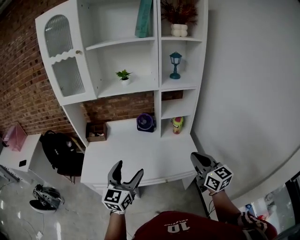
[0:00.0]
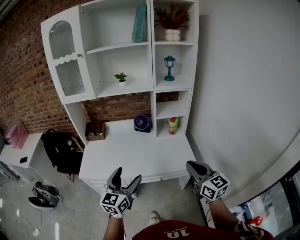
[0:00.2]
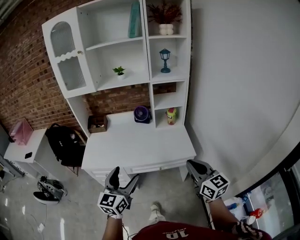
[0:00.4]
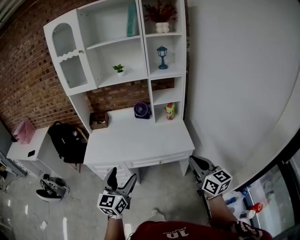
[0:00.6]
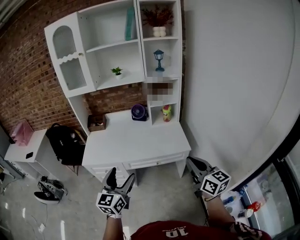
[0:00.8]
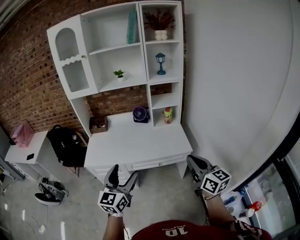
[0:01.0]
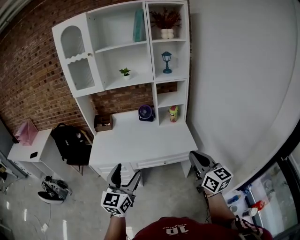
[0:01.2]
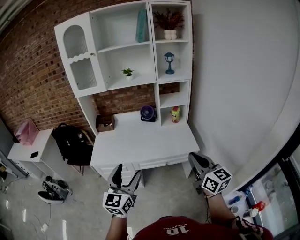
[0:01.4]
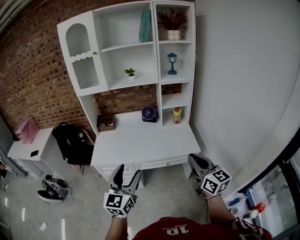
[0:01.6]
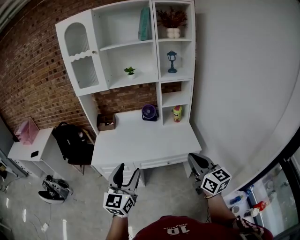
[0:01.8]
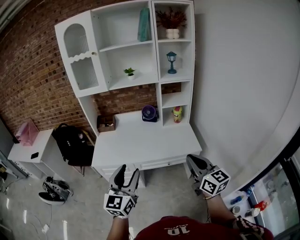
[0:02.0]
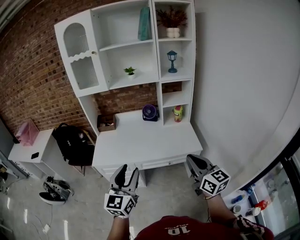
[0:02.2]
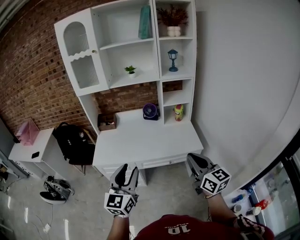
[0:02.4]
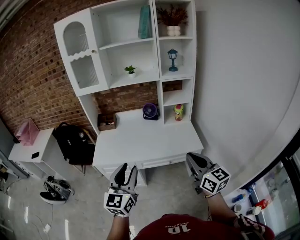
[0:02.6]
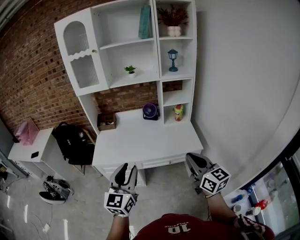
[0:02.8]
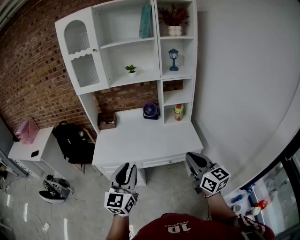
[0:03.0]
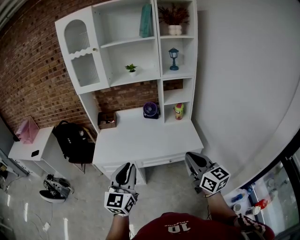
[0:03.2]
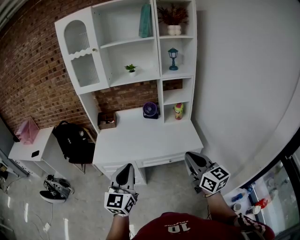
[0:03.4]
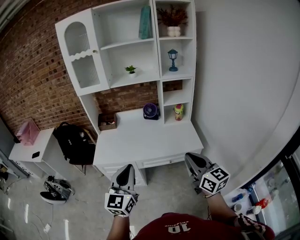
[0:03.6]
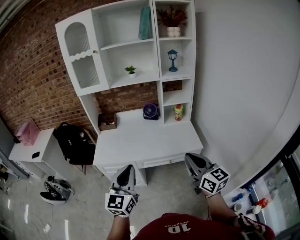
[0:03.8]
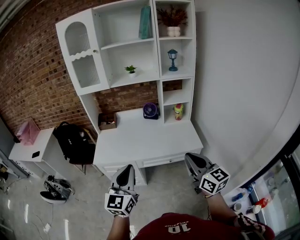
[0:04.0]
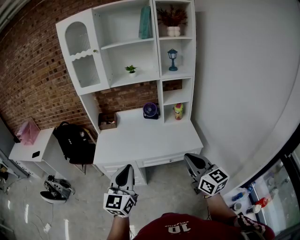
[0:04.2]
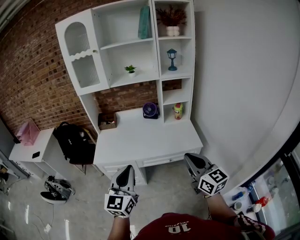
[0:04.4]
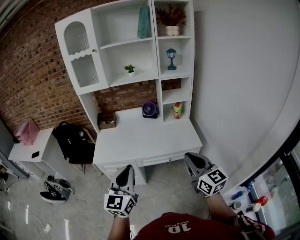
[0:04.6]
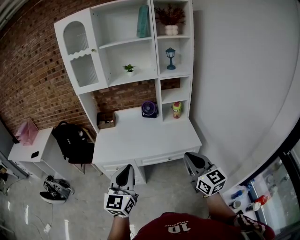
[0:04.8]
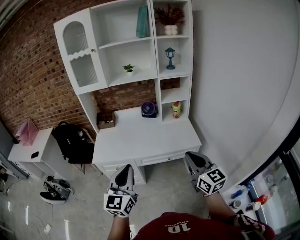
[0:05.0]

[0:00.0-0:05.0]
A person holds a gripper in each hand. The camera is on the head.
0:00.0 to 0:01.6: The two grippers go about 20 cm backward.
0:01.6 to 0:03.4: The left gripper closes up.
0:03.4 to 0:05.0: The grippers make only small movements.

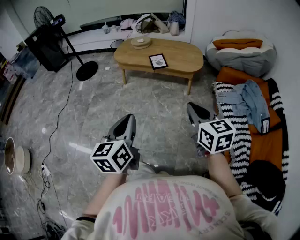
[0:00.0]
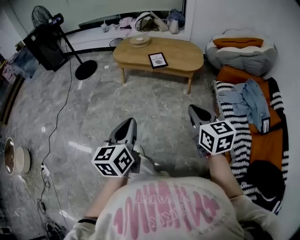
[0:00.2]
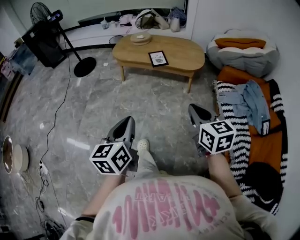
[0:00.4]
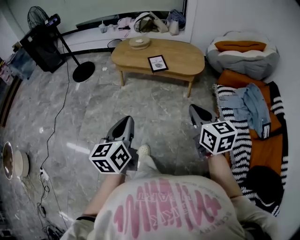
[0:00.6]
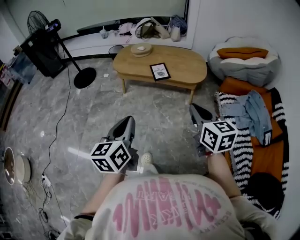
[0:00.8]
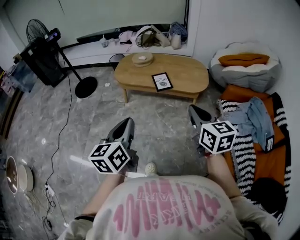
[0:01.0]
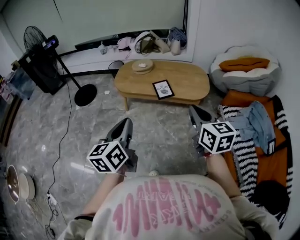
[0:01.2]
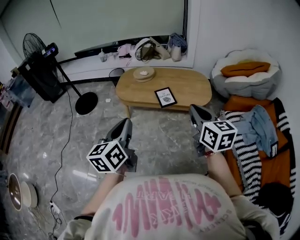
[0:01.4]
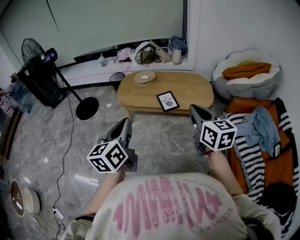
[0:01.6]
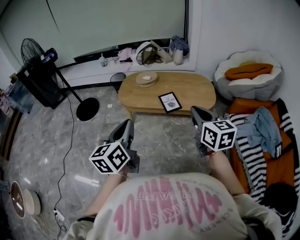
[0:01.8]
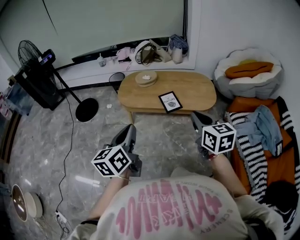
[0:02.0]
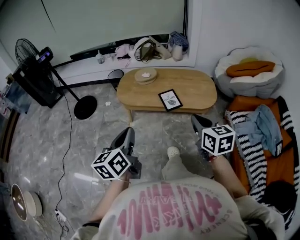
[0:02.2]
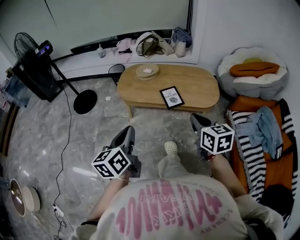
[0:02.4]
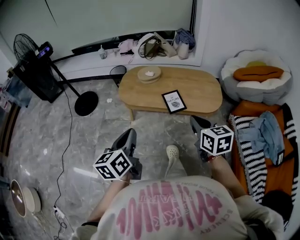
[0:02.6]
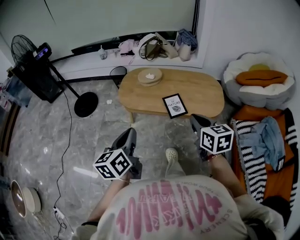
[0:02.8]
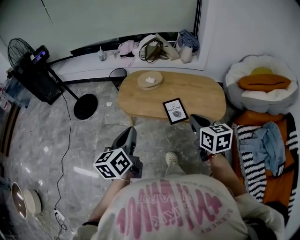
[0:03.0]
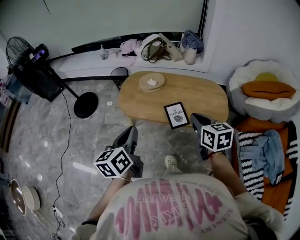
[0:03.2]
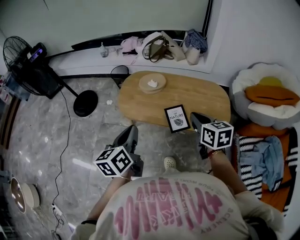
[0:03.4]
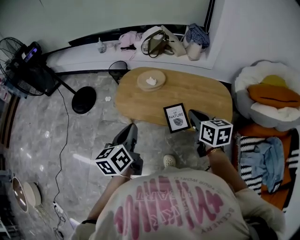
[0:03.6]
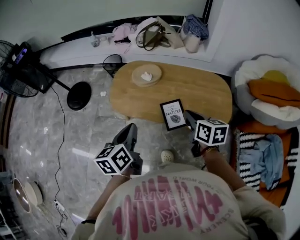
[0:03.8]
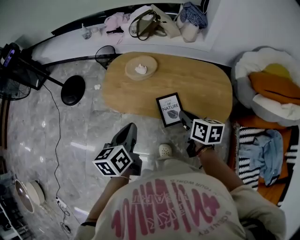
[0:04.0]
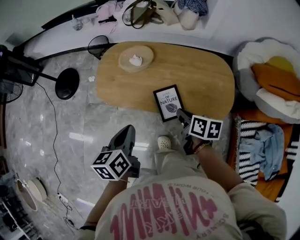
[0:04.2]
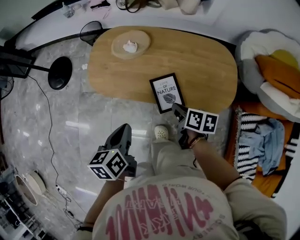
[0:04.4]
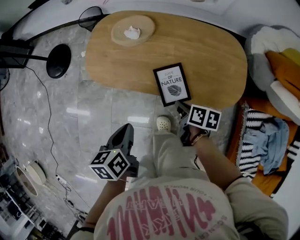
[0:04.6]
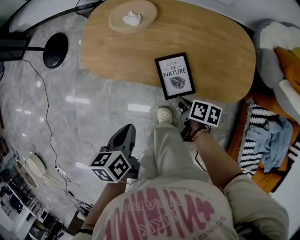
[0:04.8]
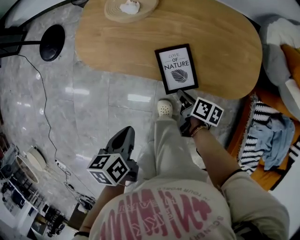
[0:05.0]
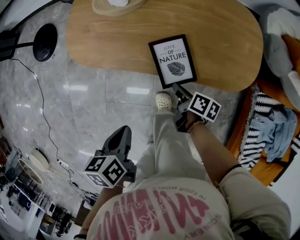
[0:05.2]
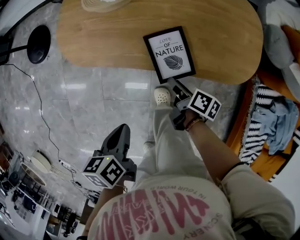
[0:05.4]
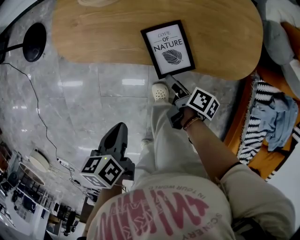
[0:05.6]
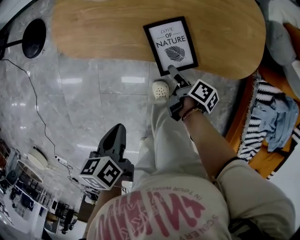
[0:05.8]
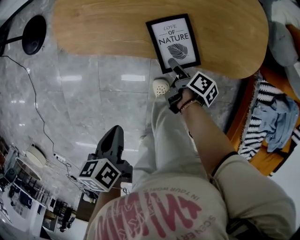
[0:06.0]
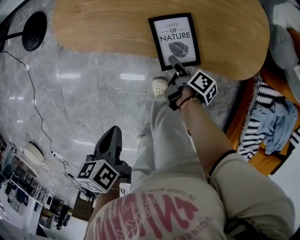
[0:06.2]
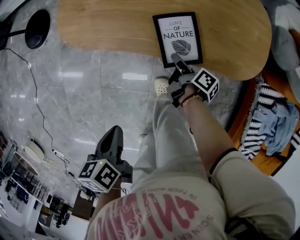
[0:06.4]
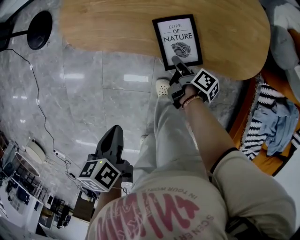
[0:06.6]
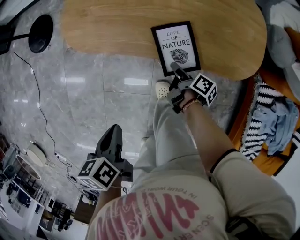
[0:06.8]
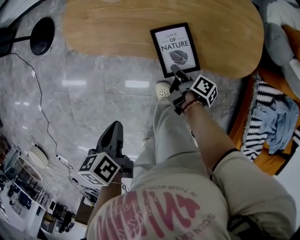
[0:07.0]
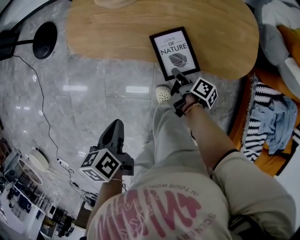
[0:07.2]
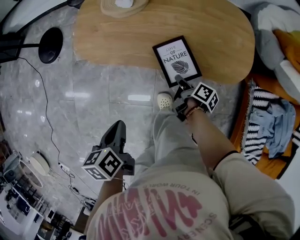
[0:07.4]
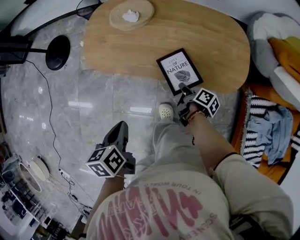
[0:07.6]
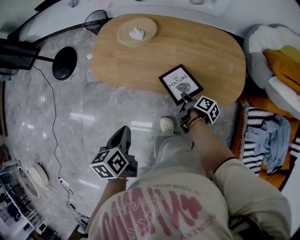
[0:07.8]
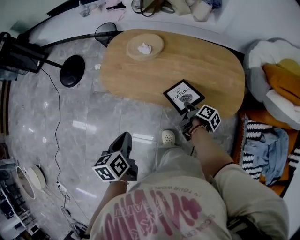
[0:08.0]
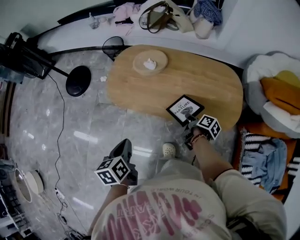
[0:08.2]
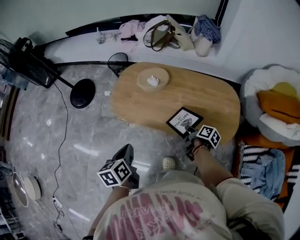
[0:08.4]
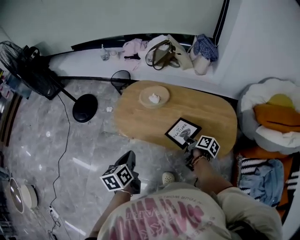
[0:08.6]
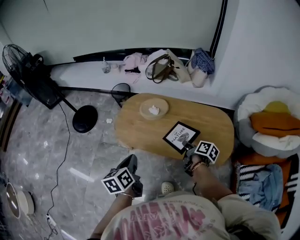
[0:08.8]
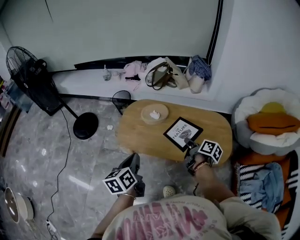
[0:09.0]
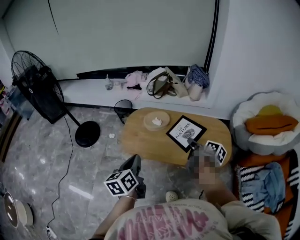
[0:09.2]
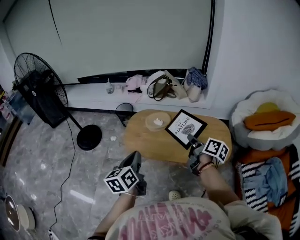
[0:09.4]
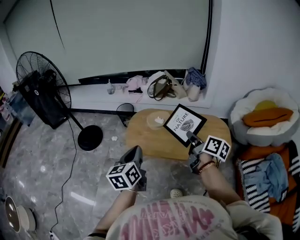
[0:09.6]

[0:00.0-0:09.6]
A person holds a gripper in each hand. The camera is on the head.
0:00.0 to 0:01.6: Both grippers move forward, approximately 30 cm.
0:01.6 to 0:03.2: The right gripper is displaced forward and downward by some 25 cm. The left gripper is displaced forward by about 20 cm.
0:03.2 to 0:04.8: The two grippers go approximately 30 cm downward. The left gripper points its fingers about 30 degrees further downward. Meanwhile the right gripper rotates around the line of its fingers by some 50 degrees, clockwise from behind.
0:04.8 to 0:06.4: The right gripper travels downward by approximately 10 cm, turns by approximately 40 degrees, and opens its fingers. Meanwhile the left gripper travels backward by roughly 10 cm.
0:06.4 to 0:08.0: The right gripper is displaced upward by about 15 cm, and closes its fingers. The left gripper is displaced upward and forward by roughly 10 cm.
0:08.0 to 0:09.6: The right gripper goes approximately 40 cm upward, and points its fingers about 30 degrees further upward. The left gripper moves upward, some 20 cm, and angles its fingers upward, by approximately 30 degrees.

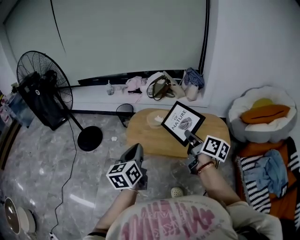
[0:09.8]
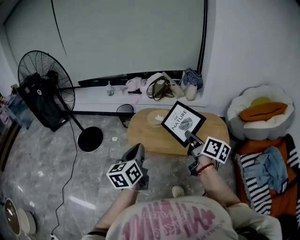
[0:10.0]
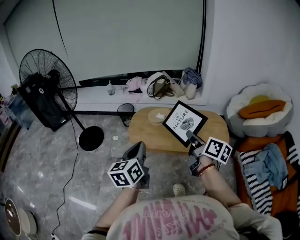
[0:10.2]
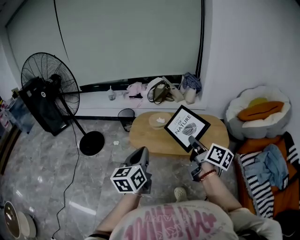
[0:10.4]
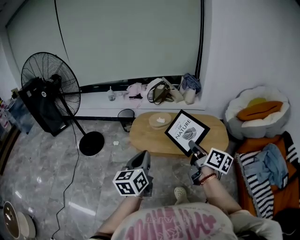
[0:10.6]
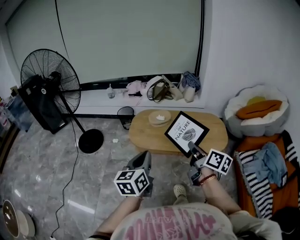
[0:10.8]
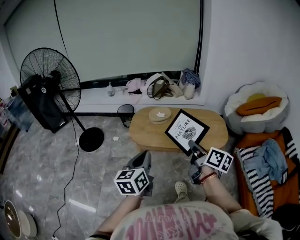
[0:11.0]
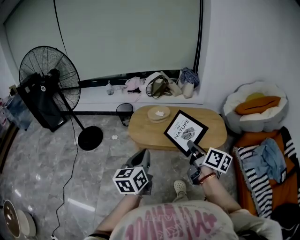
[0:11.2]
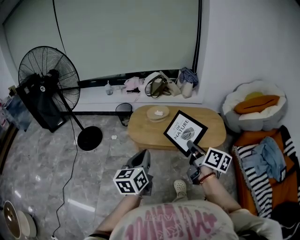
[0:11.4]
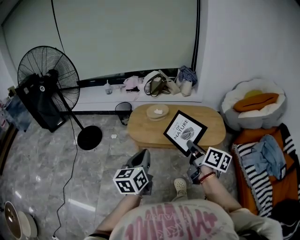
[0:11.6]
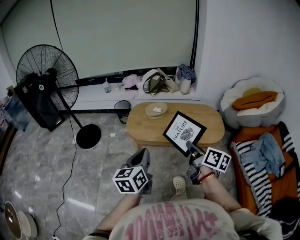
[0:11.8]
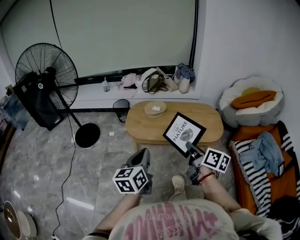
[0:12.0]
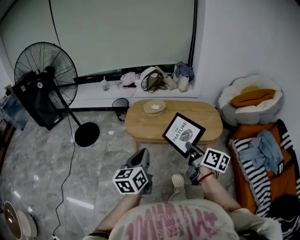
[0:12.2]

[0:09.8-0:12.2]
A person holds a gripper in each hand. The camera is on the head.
0:09.8 to 0:11.0: The two grippers go about 15 cm backward.
0:11.0 to 0:12.2: The right gripper heads backward, covering roughly 5 cm.

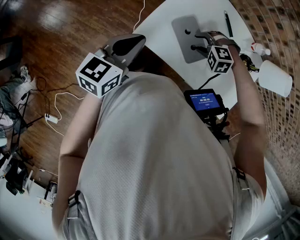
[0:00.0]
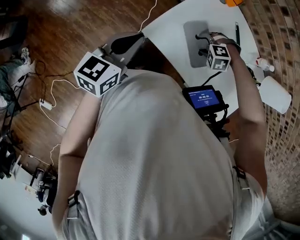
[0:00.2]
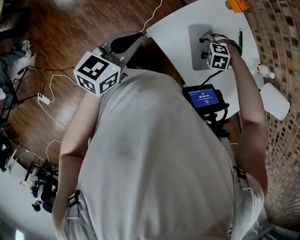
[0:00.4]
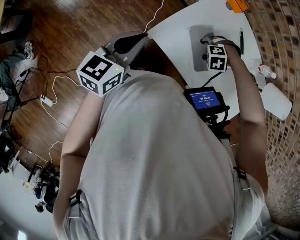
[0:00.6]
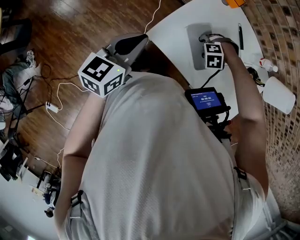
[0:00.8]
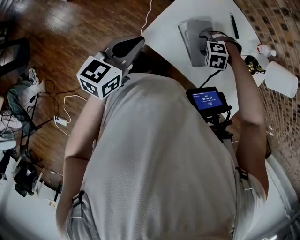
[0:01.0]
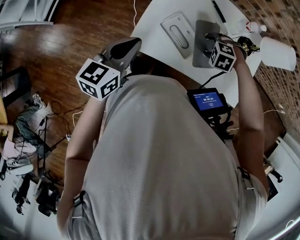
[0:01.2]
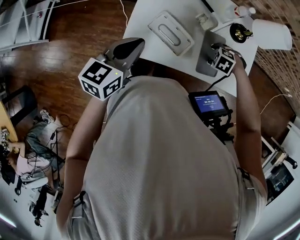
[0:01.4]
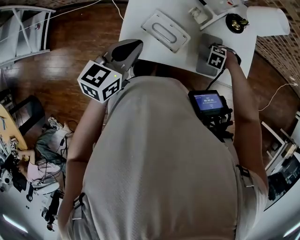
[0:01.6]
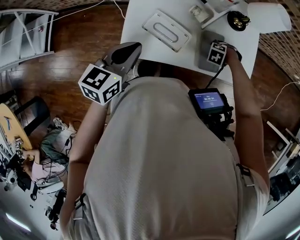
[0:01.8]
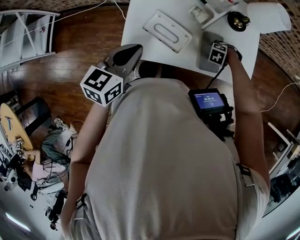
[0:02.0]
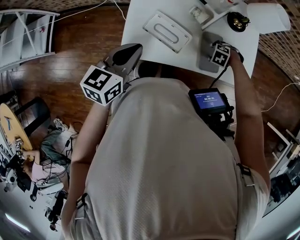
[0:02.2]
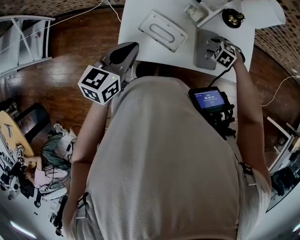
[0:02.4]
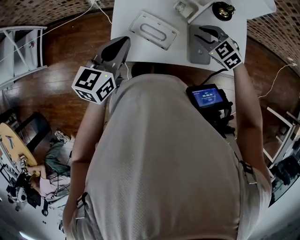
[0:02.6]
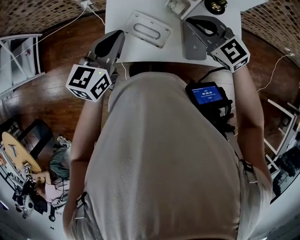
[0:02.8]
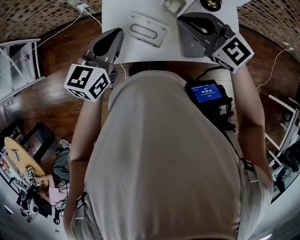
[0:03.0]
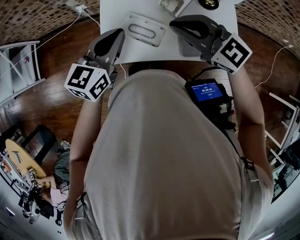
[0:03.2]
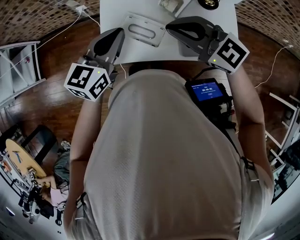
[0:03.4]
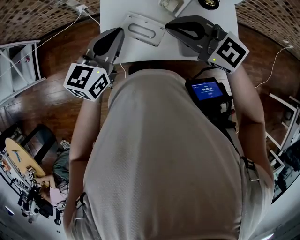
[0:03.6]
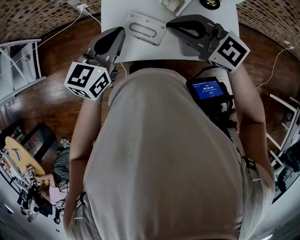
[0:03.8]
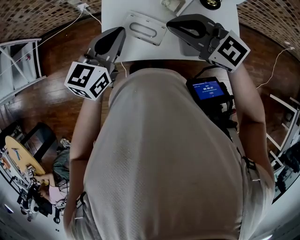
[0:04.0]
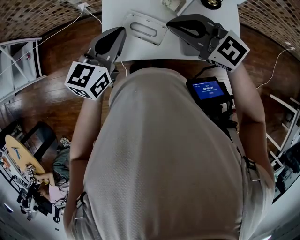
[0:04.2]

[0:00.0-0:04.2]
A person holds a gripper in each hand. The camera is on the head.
0:00.0 to 0:01.4: The right gripper ends up some 10 cm from where it was, and changes its angle by about 40 degrees.
0:01.4 to 0:02.8: The right gripper goes some 20 cm upward, points its fingers roughly 60 degrees further upward, and closes.
0:02.8 to 0:04.2: The left gripper shifts by some 5 cm; the right gripper is displaced upward and backward by some 10 cm.

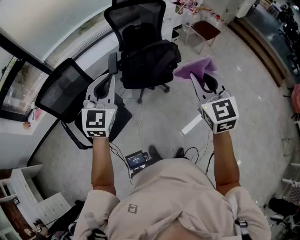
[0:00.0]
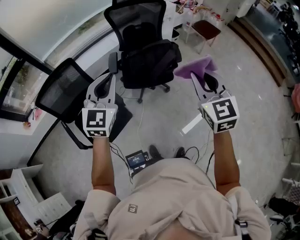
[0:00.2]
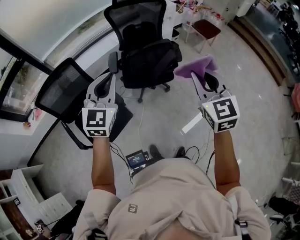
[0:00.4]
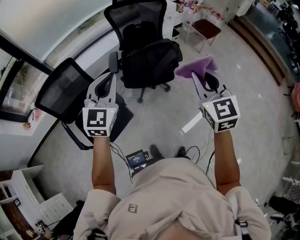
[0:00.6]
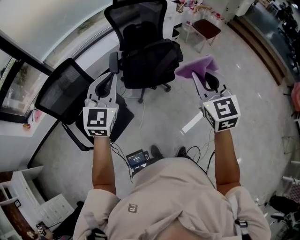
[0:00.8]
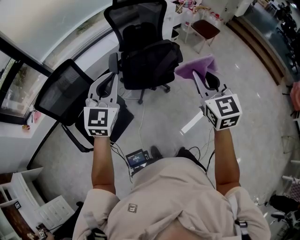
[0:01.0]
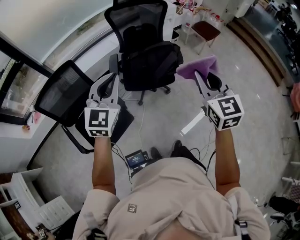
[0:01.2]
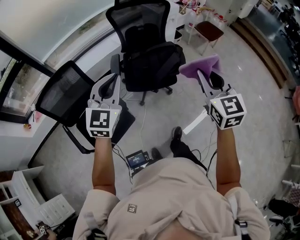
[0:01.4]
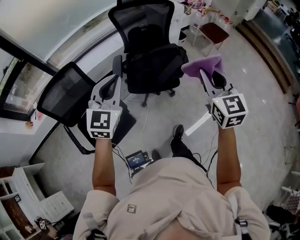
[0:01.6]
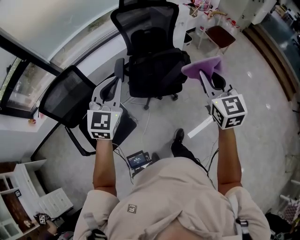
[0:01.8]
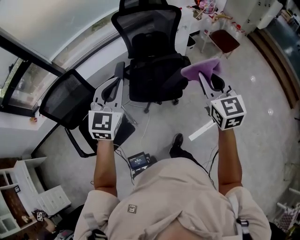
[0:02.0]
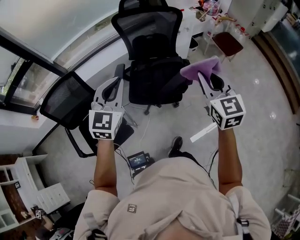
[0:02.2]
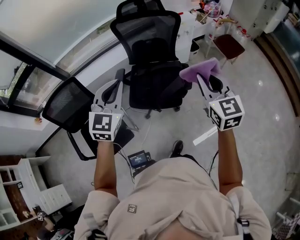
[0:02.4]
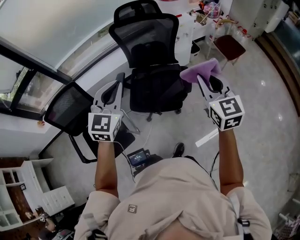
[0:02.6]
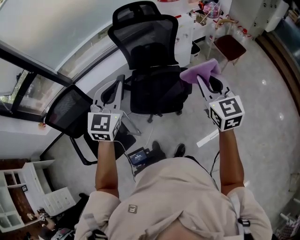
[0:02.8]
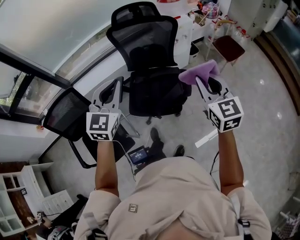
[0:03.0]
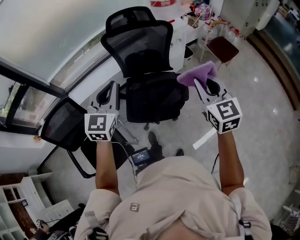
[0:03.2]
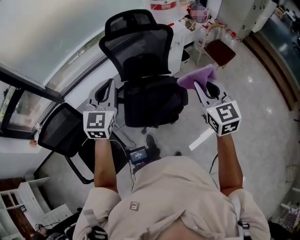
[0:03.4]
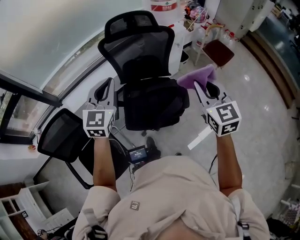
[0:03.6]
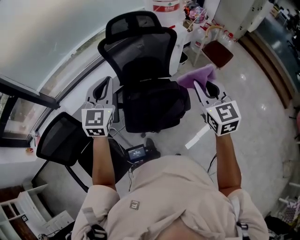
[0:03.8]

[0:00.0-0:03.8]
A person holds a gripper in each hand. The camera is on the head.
0:00.0 to 0:01.2: The grippers make only small movements.
0:01.2 to 0:02.6: Both grippers move forward and to the right, approximately 30 cm.
0:02.6 to 0:03.8: The grippers both shift forward and to the left by about 20 cm.
